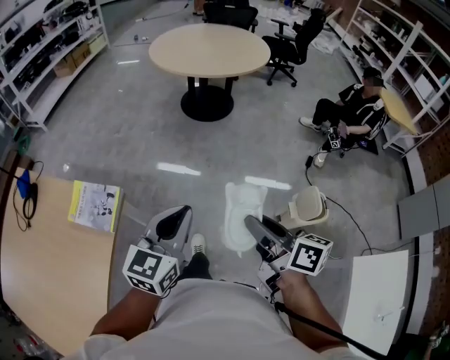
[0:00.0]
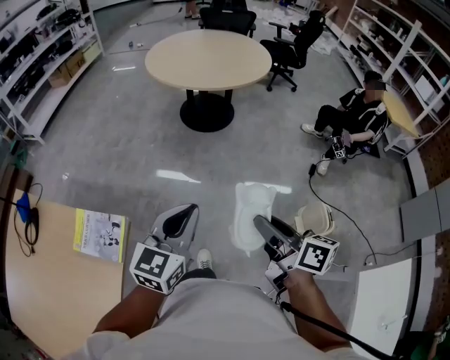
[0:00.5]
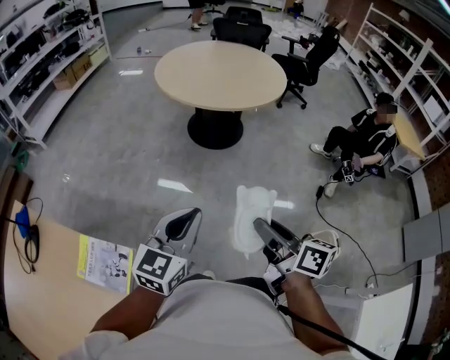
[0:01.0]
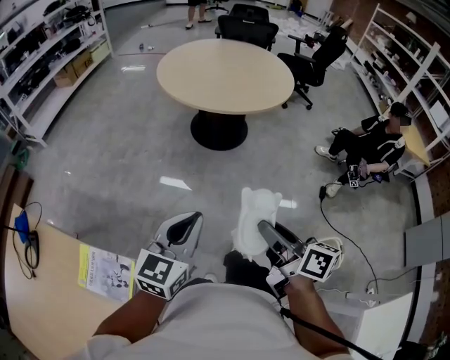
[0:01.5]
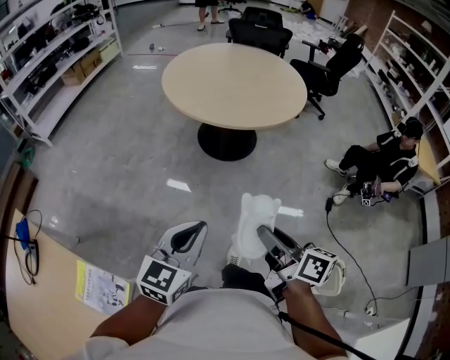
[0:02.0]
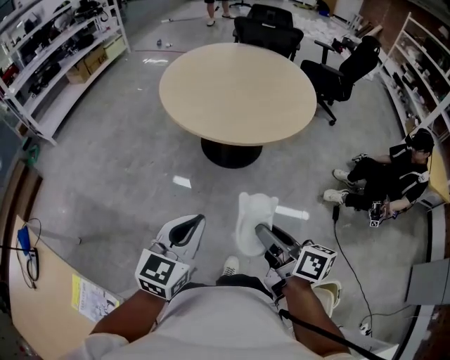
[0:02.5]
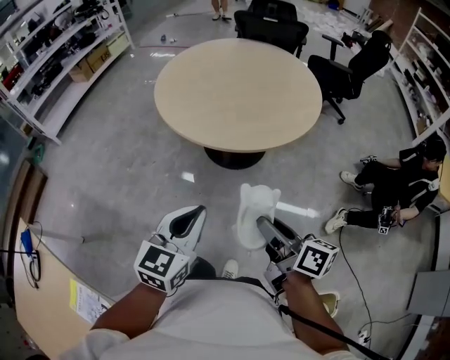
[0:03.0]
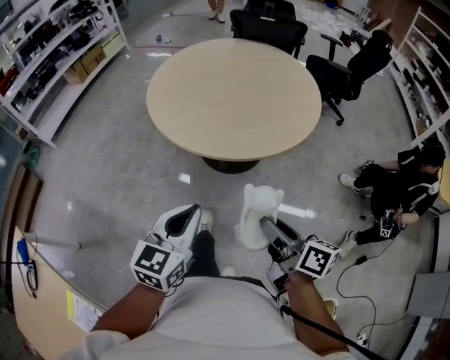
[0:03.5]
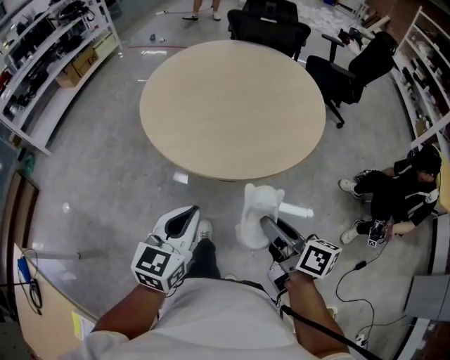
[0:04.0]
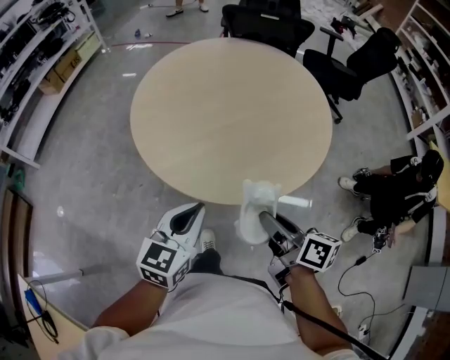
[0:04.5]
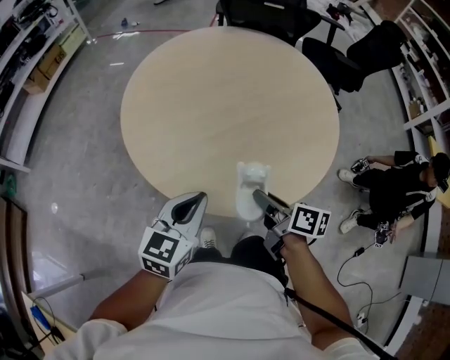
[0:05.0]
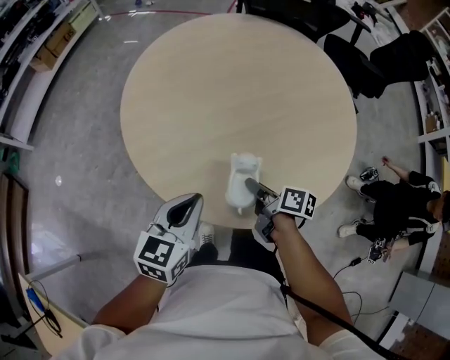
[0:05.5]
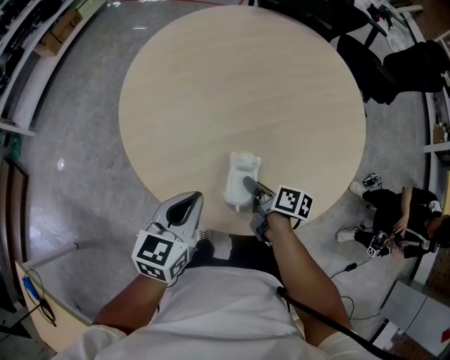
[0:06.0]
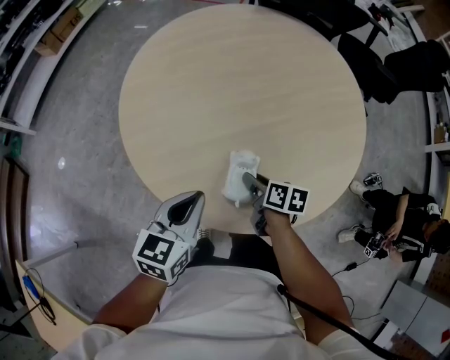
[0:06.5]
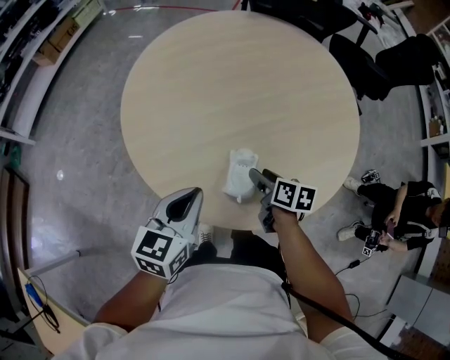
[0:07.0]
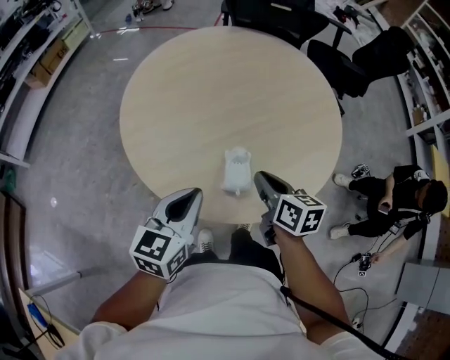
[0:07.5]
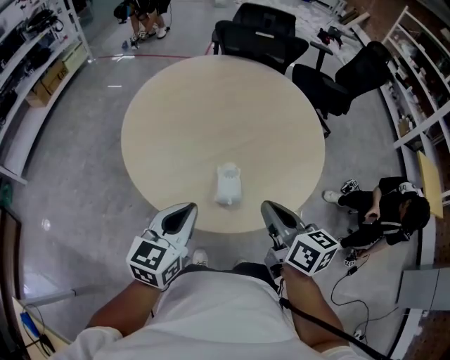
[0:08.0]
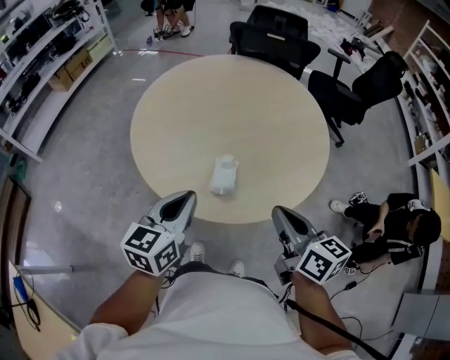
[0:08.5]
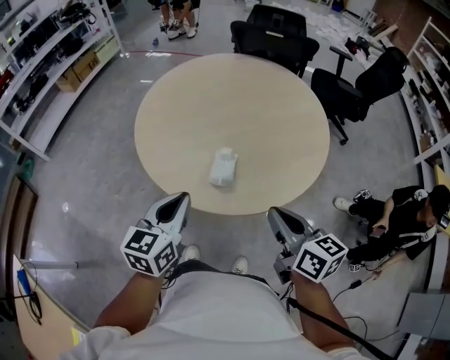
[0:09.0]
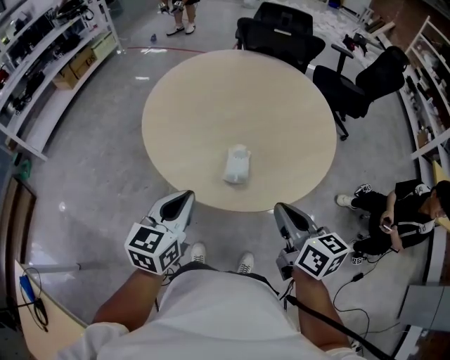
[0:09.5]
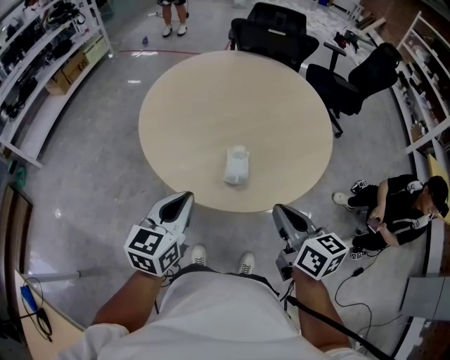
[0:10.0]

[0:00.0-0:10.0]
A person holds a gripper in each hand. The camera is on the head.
0:00.0 to 0:02.0: The two grippers go about 30 cm forward.
0:02.0 to 0:04.0: The two grippers go some 30 cm forward.
0:04.0 to 0:06.0: The right gripper shifts some 35 cm forward and downward, and turns by roughly 30 degrees. The left gripper moves forward, about 25 cm.
0:06.0 to 0:08.0: The right gripper goes approximately 25 cm upward and backward, rotates roughly 40 degrees, and closes its fingers, while the left gripper moves upward, about 5 cm.
0:08.0 to 0:10.0: The right gripper is displaced backward by about 5 cm, while the left gripper shifts by roughly 5 cm.

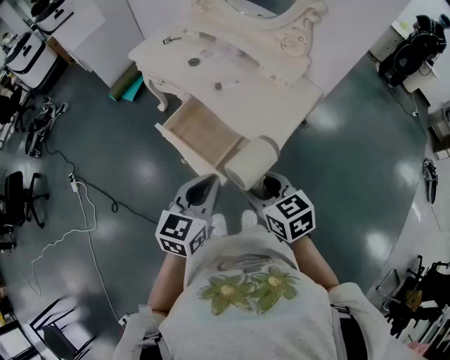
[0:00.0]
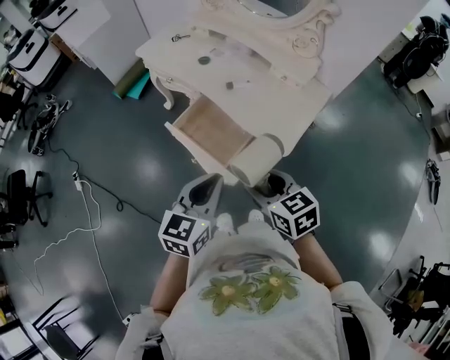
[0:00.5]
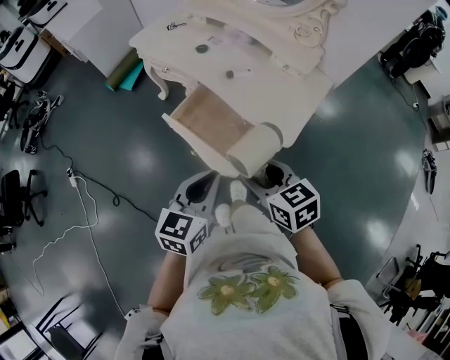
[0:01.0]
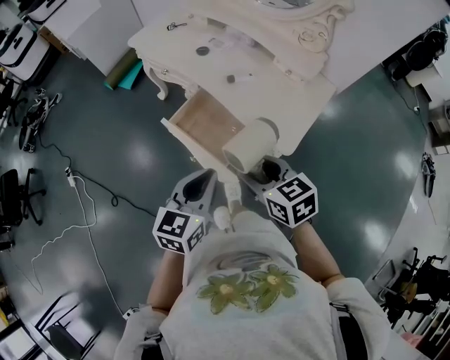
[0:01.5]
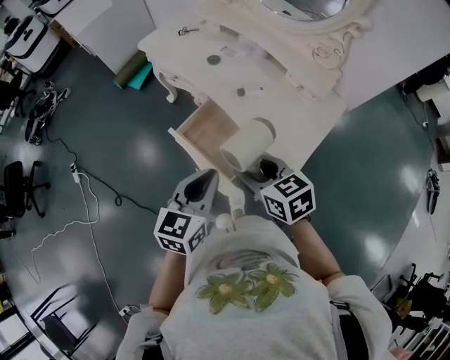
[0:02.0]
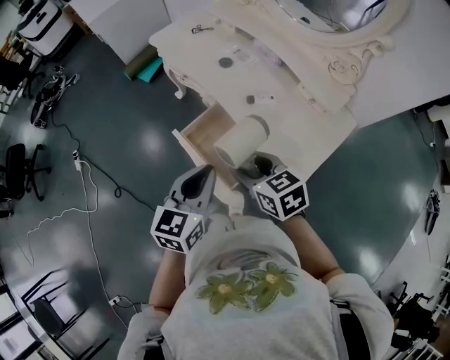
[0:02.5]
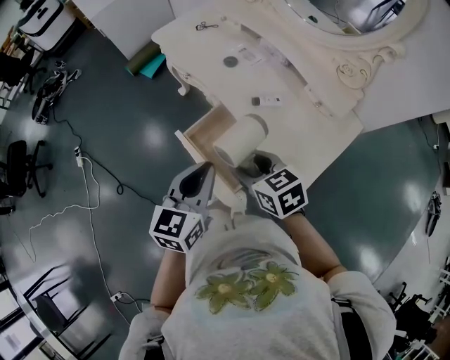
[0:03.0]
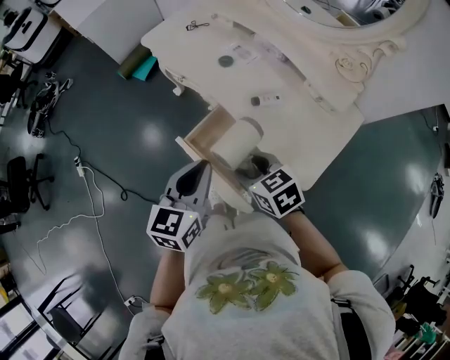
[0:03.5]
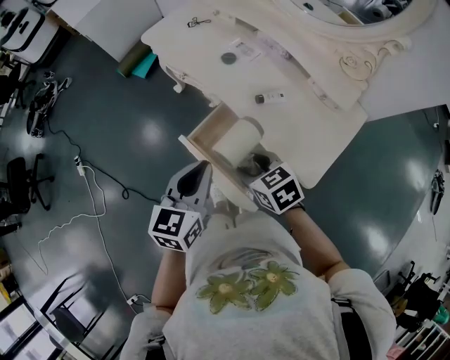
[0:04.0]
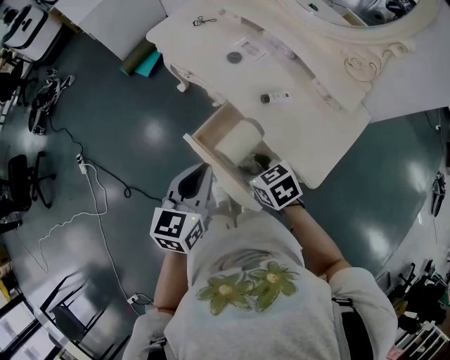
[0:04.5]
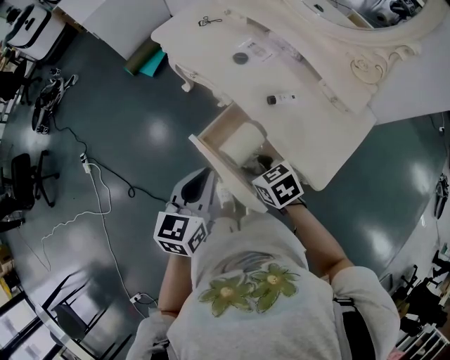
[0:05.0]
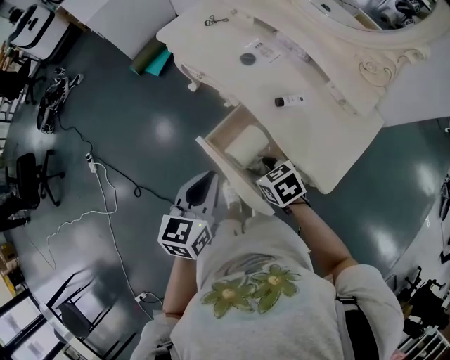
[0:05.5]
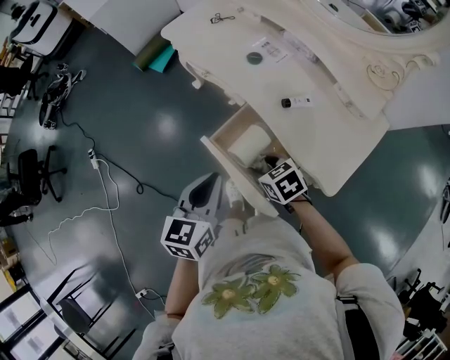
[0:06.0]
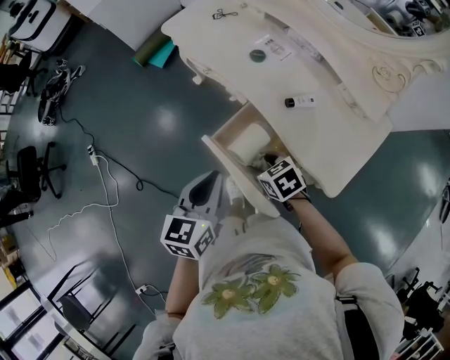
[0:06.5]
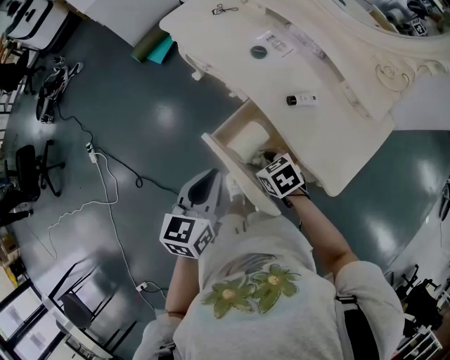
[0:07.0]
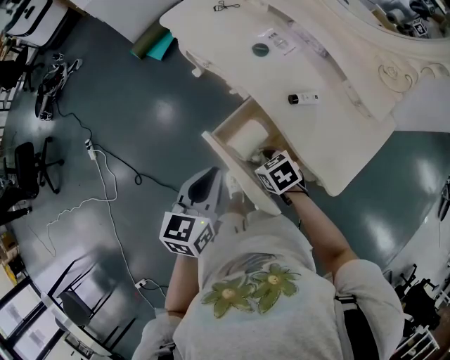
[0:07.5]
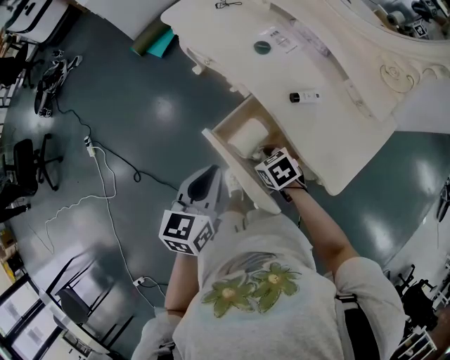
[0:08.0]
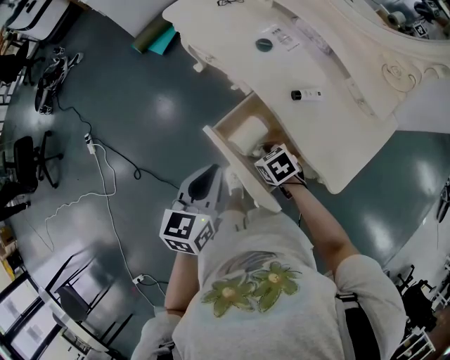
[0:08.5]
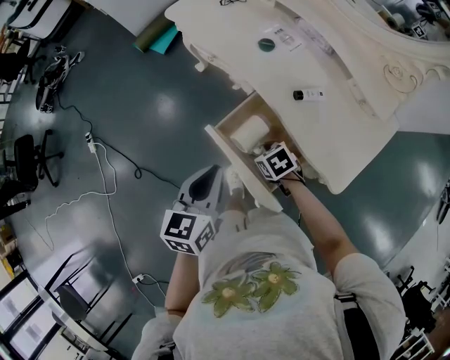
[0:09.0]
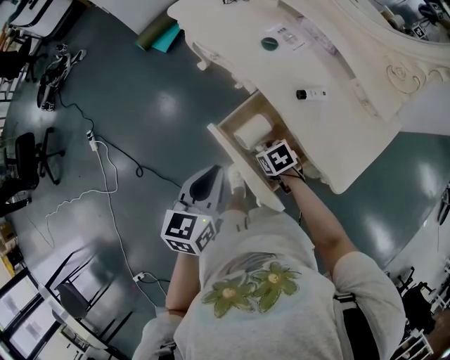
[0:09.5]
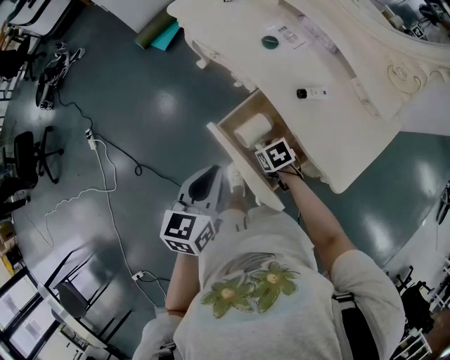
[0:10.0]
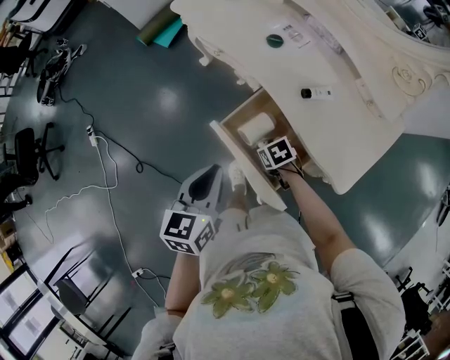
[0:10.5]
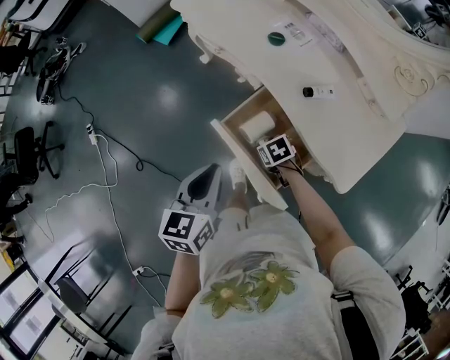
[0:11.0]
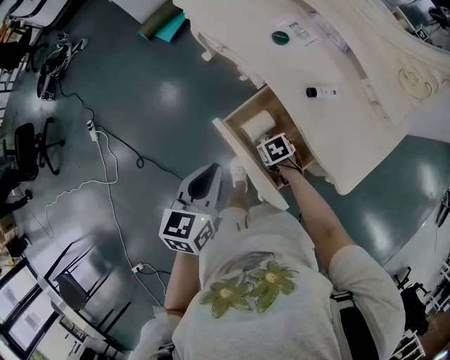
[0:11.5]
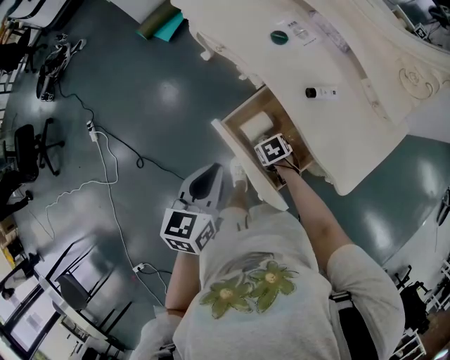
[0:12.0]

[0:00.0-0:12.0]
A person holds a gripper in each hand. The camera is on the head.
0:00.0 to 0:02.0: The two grippers go some 15 cm forward and to the left.
0:02.0 to 0:04.0: The left gripper heads forward, covering roughly 10 cm, while the right gripper goes roughly 10 cm forward and downward.
0:04.0 to 0:06.0: The left gripper changes place by some 5 cm; the right gripper shifts approximately 10 cm downward.
0:06.0 to 0:08.0: The right gripper heads downward, covering about 5 cm.
0:08.0 to 0:10.0: The right gripper moves downward, some 5 cm.
0:10.0 to 0:12.0: The right gripper heads downward, covering some 5 cm.

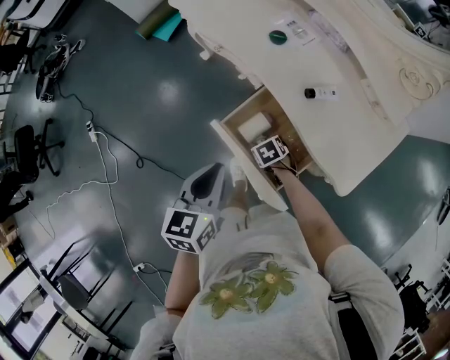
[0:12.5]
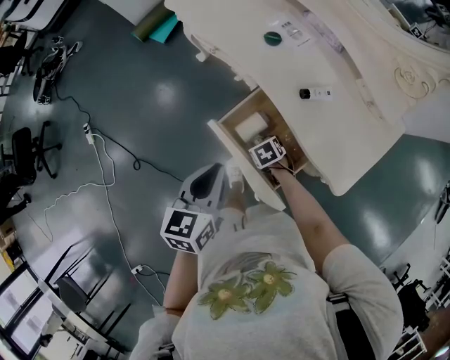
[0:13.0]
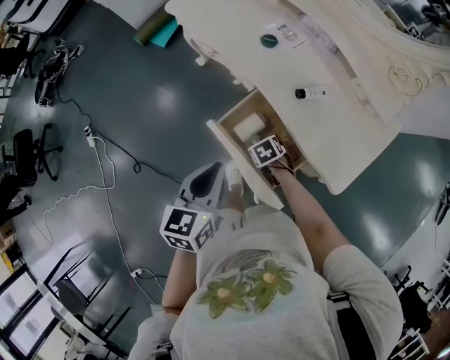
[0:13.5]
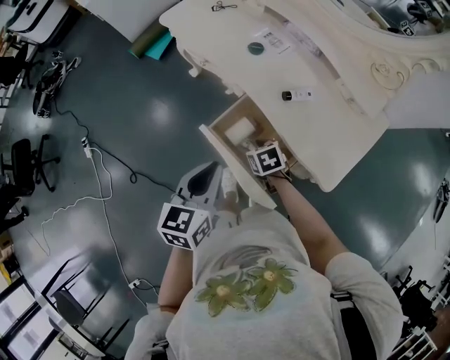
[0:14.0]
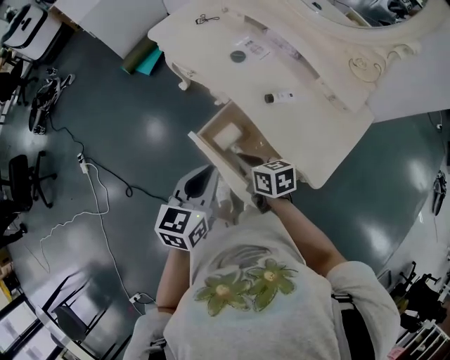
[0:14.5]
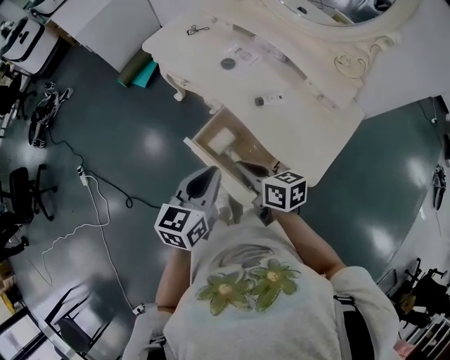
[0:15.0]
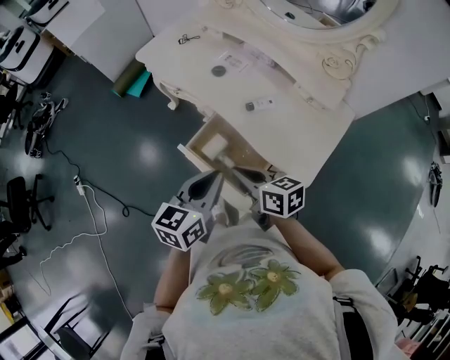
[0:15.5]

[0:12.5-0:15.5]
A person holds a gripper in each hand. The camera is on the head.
0:12.5 to 0:14.0: The right gripper goes approximately 10 cm upward.
0:14.0 to 0:15.5: The right gripper shifts roughly 20 cm upward, tips its fingers upward by some 40 degrees, and closes its fingers. The left gripper travels to the right by about 5 cm.

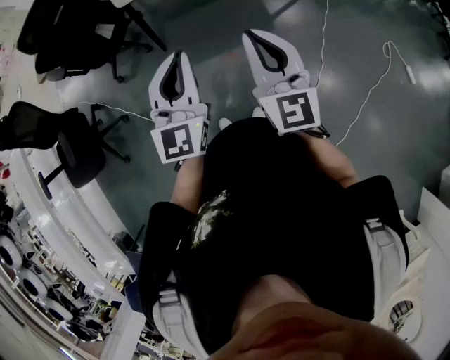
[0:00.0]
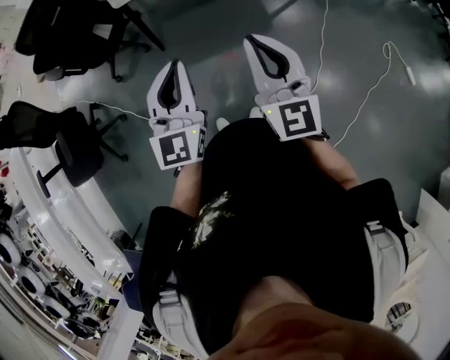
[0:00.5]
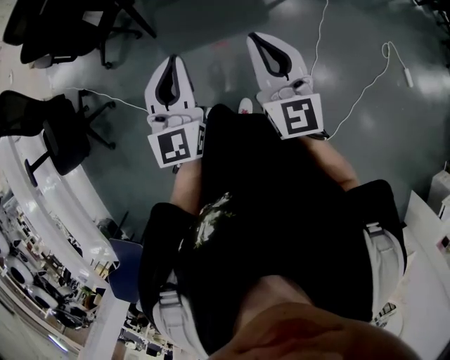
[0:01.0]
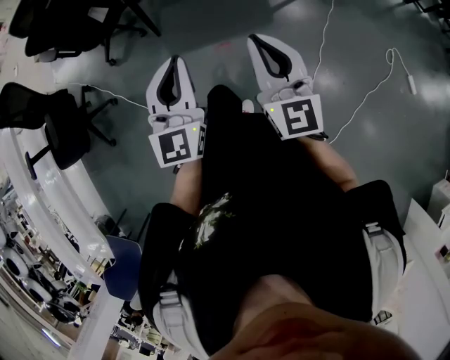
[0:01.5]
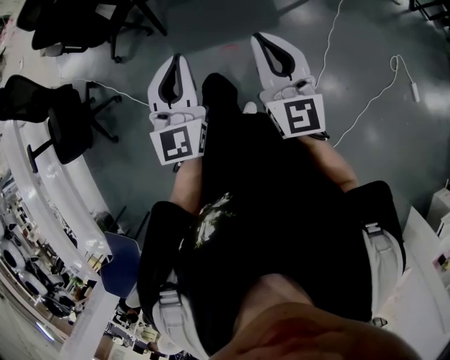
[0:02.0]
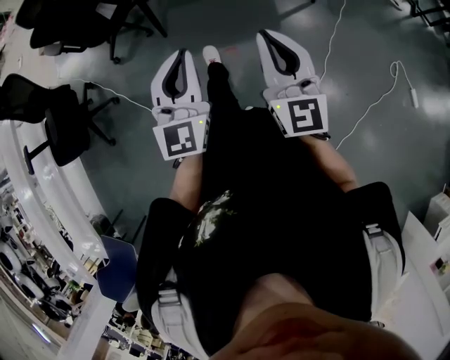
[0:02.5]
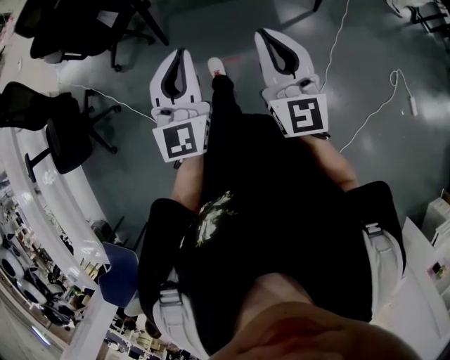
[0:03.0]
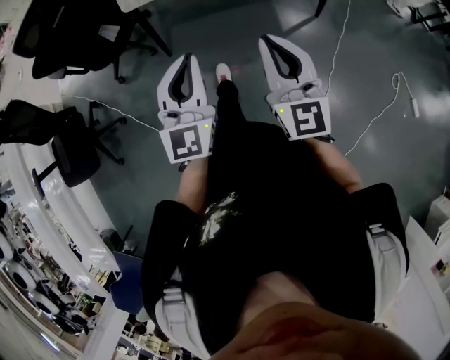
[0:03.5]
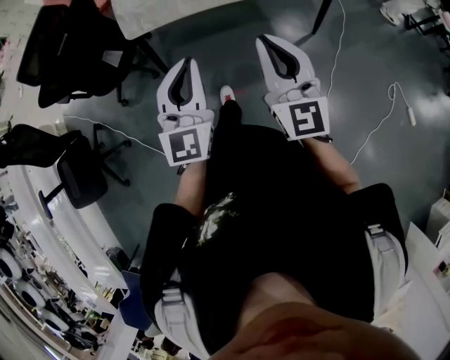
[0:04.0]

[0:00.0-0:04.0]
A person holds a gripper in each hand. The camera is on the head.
0:00.0 to 0:02.0: The two grippers go approximately 5 cm to the right.
0:02.0 to 0:04.0: Both grippers travel together forward, about 30 cm.
